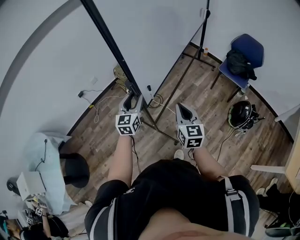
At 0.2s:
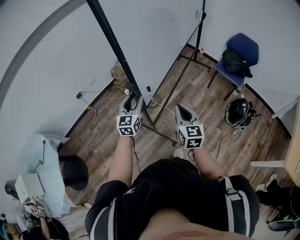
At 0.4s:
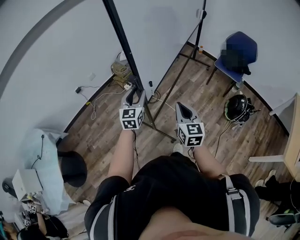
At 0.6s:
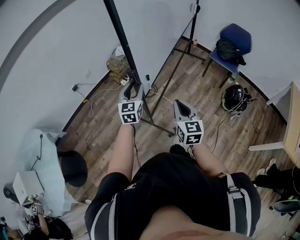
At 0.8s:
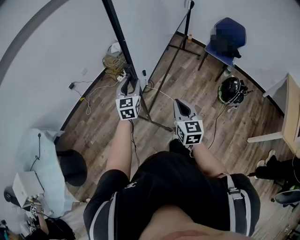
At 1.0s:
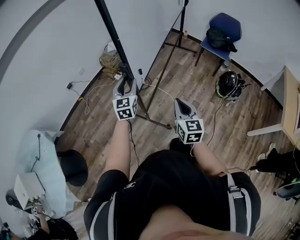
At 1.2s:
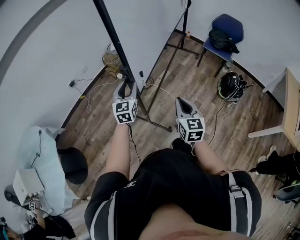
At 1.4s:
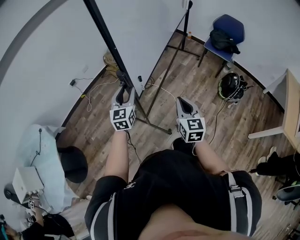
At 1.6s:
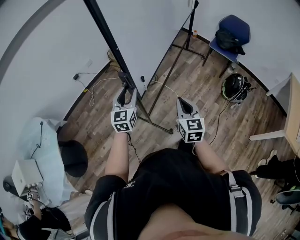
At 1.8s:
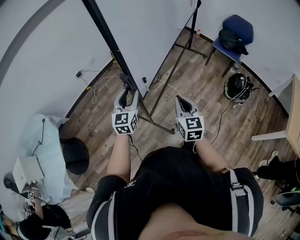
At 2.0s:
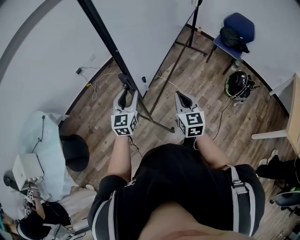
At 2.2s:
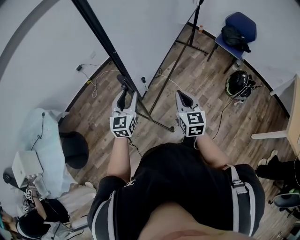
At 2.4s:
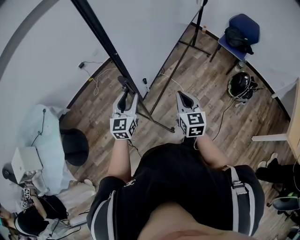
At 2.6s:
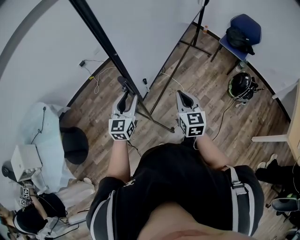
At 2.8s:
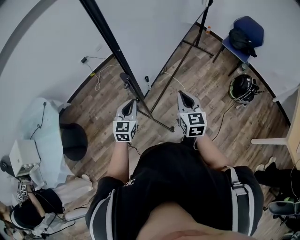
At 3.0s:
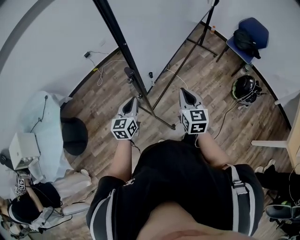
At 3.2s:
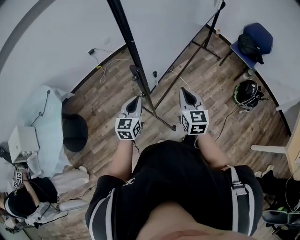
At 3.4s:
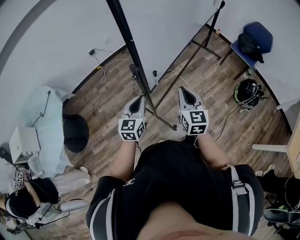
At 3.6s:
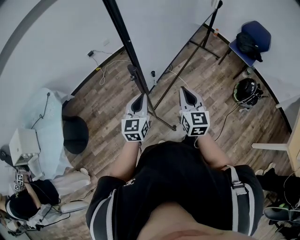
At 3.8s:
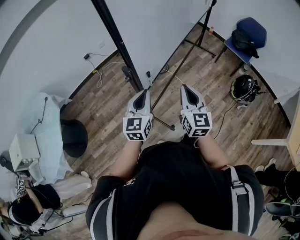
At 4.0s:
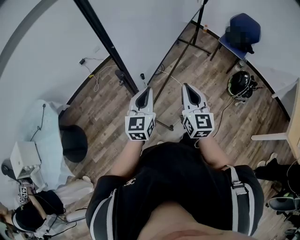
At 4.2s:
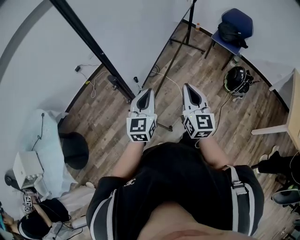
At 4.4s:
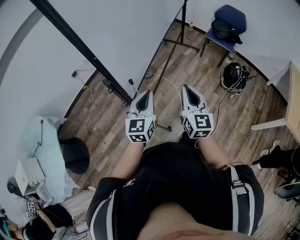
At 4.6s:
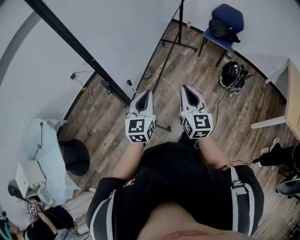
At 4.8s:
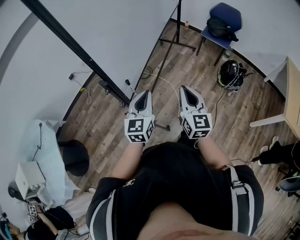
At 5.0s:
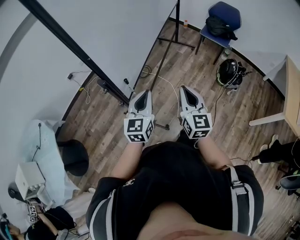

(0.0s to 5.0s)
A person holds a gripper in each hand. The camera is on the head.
0.0s - 1.6s: The grippers both shift backward by roughly 20 cm.
1.6s - 3.4s: The left gripper goes about 10 cm backward, and closes its fingers; the right gripper moves to the left, some 5 cm.
3.4s - 5.0s: The left gripper is displaced to the right and upward by about 15 cm. Meanwhile the right gripper heads to the right, covering approximately 10 cm.

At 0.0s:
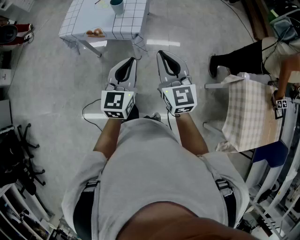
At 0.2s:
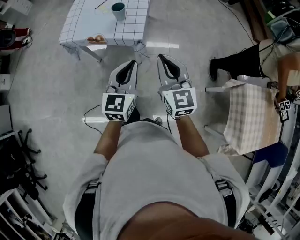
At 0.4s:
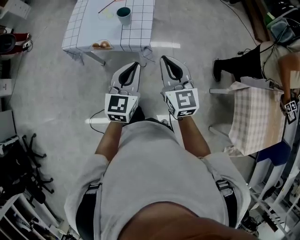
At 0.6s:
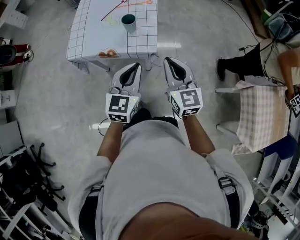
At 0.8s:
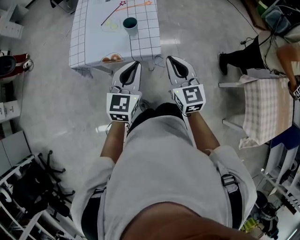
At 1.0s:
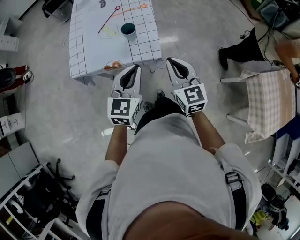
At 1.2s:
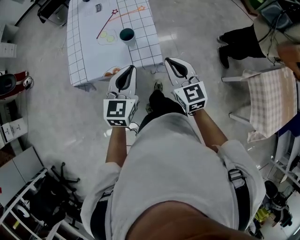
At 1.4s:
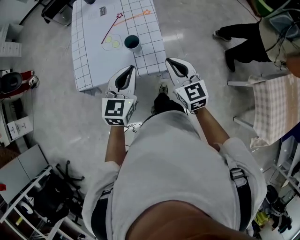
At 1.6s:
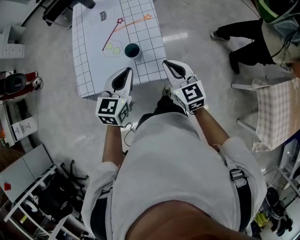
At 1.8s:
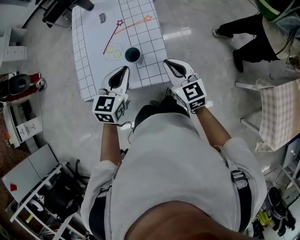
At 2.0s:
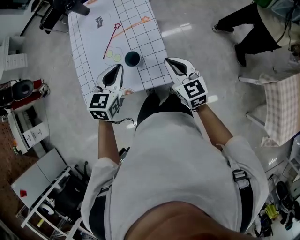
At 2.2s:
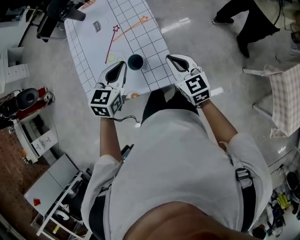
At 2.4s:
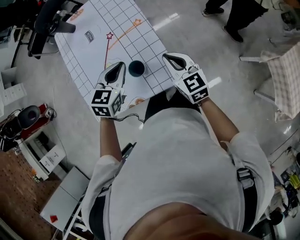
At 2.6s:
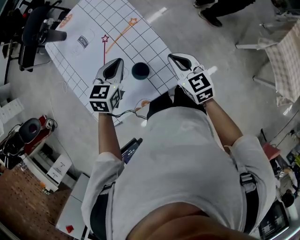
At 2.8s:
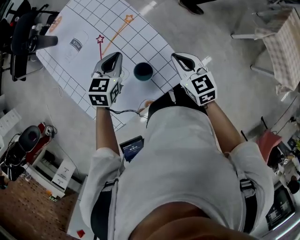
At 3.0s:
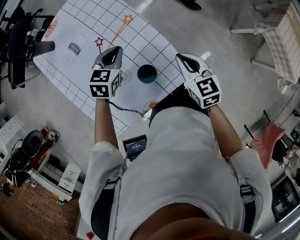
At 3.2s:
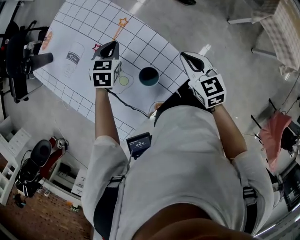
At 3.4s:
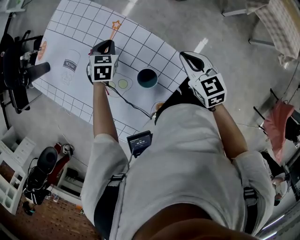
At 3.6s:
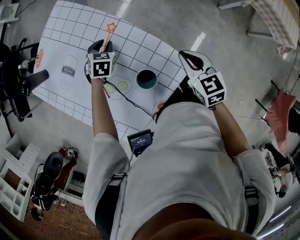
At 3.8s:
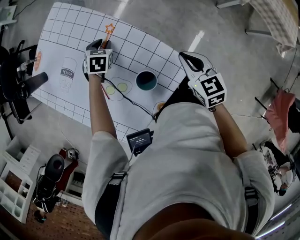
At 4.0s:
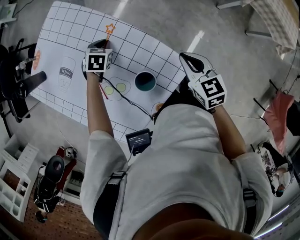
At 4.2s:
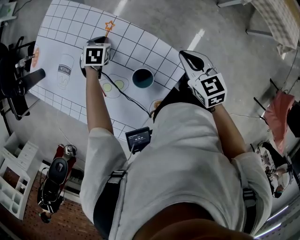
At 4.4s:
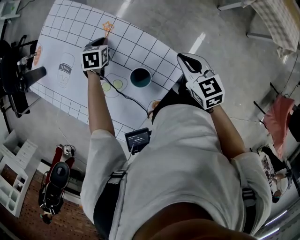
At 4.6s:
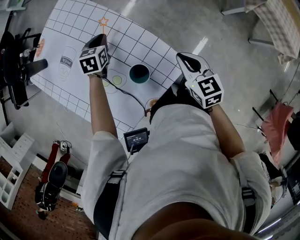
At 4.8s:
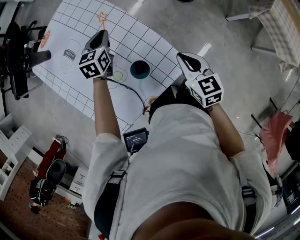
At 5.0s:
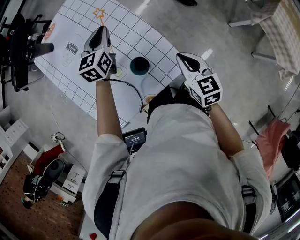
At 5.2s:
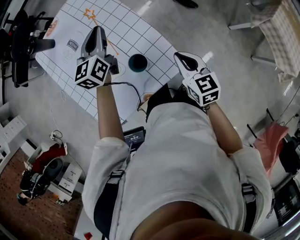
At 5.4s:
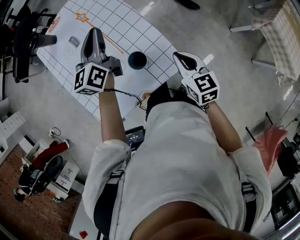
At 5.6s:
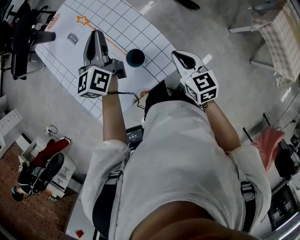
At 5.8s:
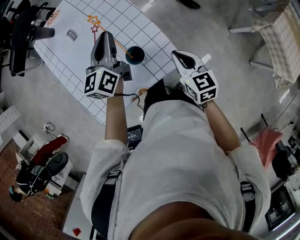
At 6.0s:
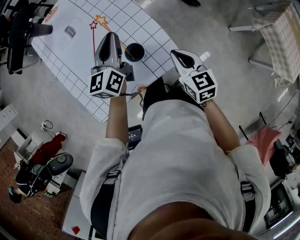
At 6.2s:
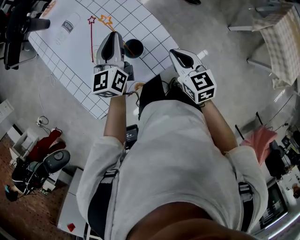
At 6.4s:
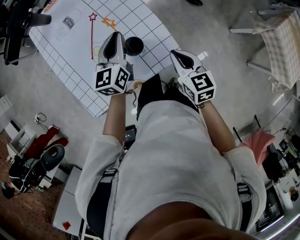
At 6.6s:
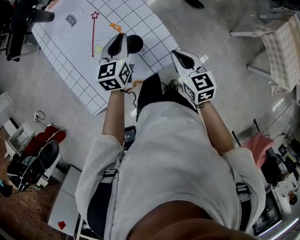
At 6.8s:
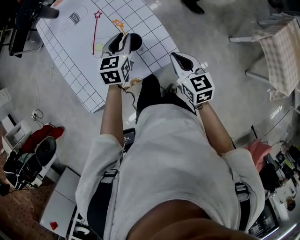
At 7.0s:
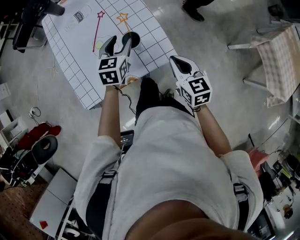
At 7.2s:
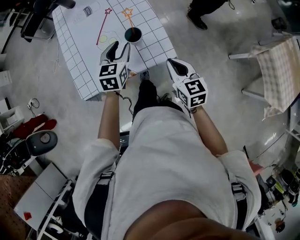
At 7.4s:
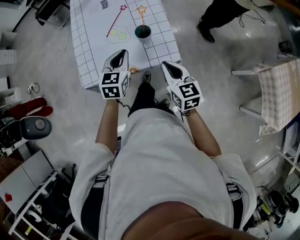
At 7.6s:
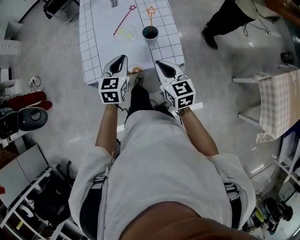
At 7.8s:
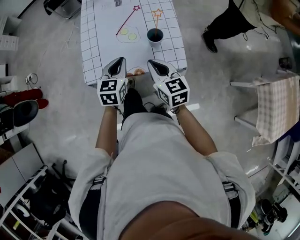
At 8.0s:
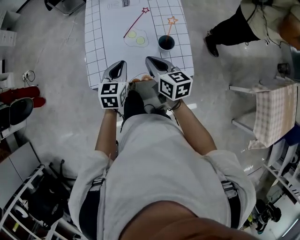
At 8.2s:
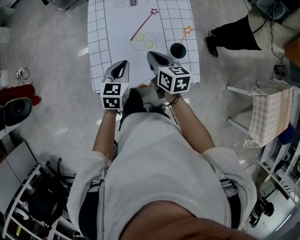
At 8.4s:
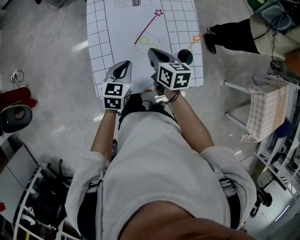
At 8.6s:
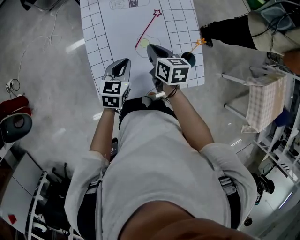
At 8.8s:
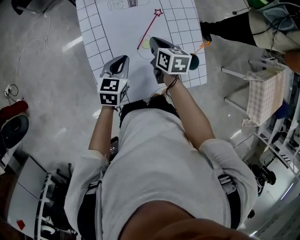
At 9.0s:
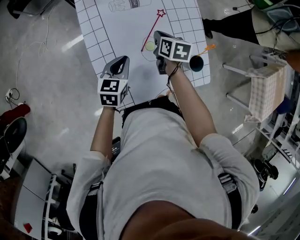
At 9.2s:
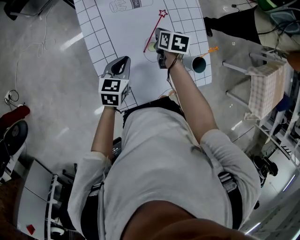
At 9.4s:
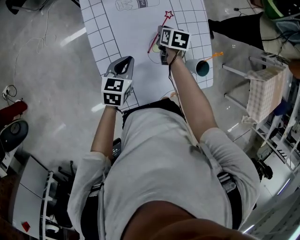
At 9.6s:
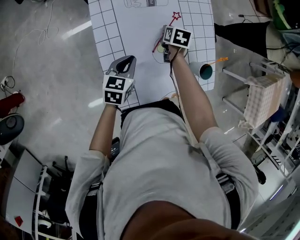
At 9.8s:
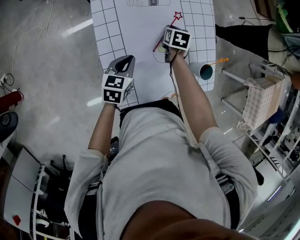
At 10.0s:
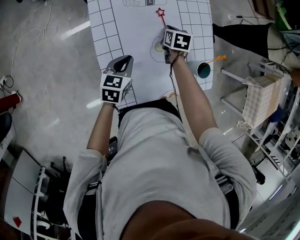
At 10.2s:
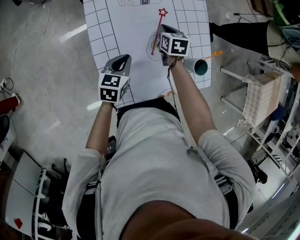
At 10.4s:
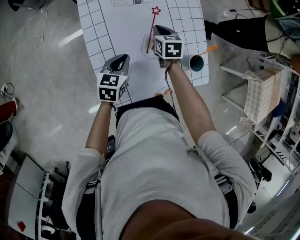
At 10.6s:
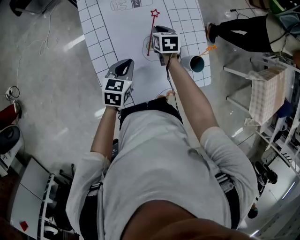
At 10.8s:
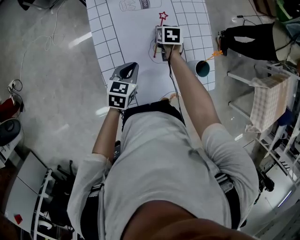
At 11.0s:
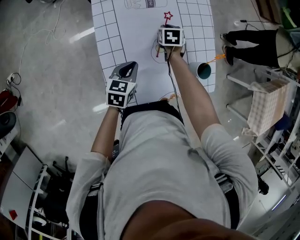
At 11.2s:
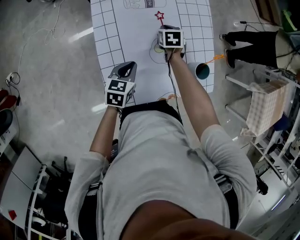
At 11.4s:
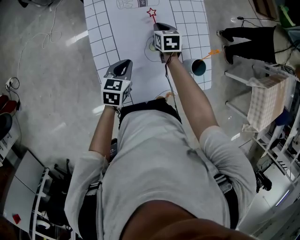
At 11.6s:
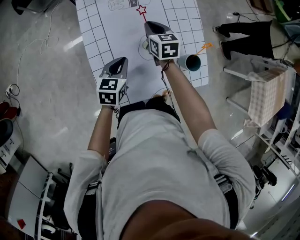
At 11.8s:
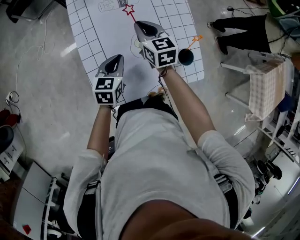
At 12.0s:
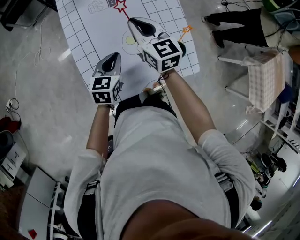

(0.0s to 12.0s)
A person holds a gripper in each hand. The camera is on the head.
0.0s - 1.6s: Both grippers move forward and to the left, approximately 35 cm. The left gripper swivels some 20 degrees.
1.6s - 3.0s: The right gripper shifts by about 15 cm, and turns by about 40 degrees. Meanwhile the left gripper ends up about 30 cm from where it was, and rotates roughly 40 degrees.
3.0s - 4.4s: The left gripper goes about 15 cm downward and forward, and opens, then closes once more. The right gripper shifts by approximately 5 cm.
4.4s - 6.0s: The left gripper moves upward and backward, roughly 25 cm, and angles its fingers upward, by some 50 degrees, while the right gripper moves about 5 cm.
6.0s - 7.6s: The right gripper travels backward, to the left and upward by about 15 cm, and swivels approximately 20 degrees; the left gripper shifts about 25 cm backward, turns by about 30 degrees, and opens, then closes again.
7.6s - 9.0s: The right gripper is displaced forward and to the left by approximately 40 cm, and turns by roughly 40 degrees; the left gripper heads forward, to the left and downward, covering approximately 30 cm, and rotates roughly 20 degrees.
10.4s - 12.0s: The left gripper moves to the right, about 5 cm. Meanwhile the right gripper travels upward by roughly 15 cm, tips its fingers upward by roughly 30 degrees, and opens and closes again.

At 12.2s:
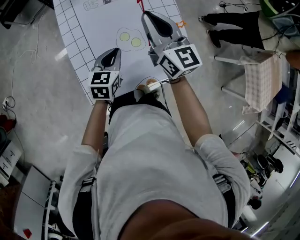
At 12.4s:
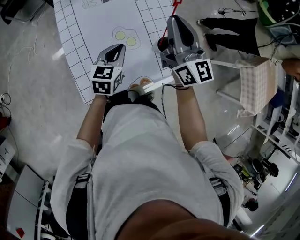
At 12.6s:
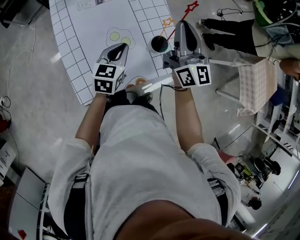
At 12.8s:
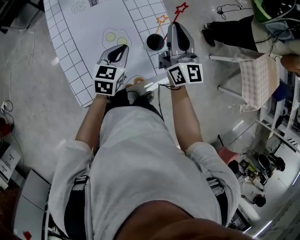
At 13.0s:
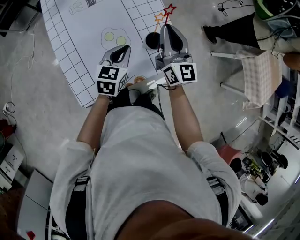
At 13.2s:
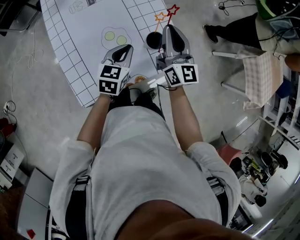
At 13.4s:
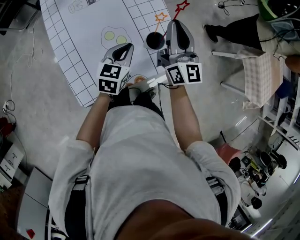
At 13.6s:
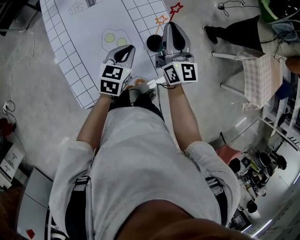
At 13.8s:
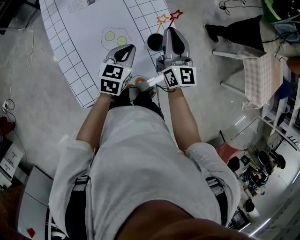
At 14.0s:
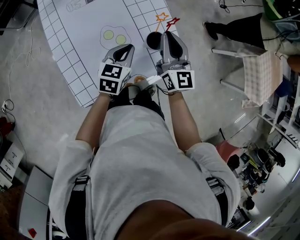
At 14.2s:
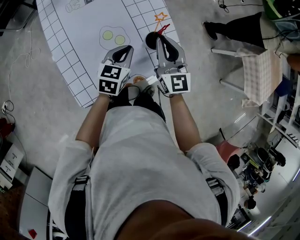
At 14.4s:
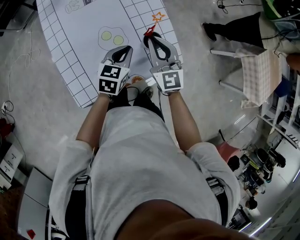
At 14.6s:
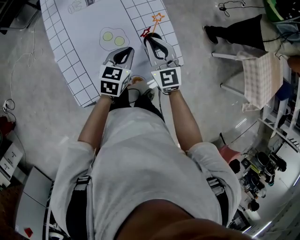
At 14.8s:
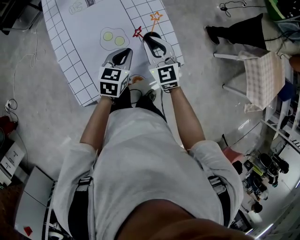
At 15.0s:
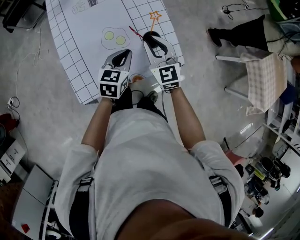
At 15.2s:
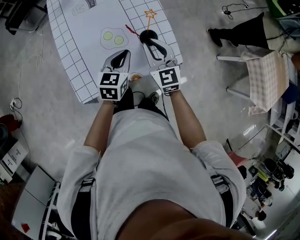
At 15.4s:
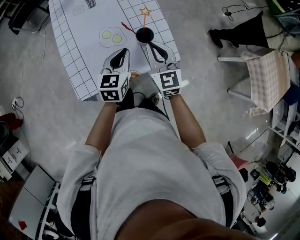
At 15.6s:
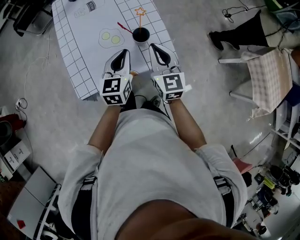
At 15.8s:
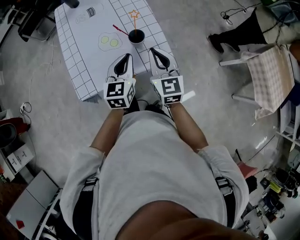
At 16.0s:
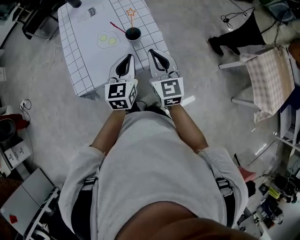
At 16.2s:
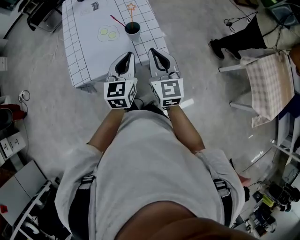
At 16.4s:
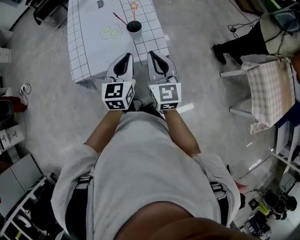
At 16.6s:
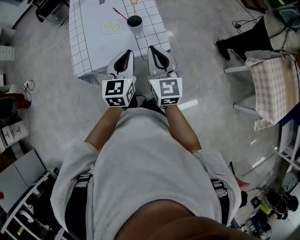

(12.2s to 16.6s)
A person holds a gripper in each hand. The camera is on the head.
12.2s - 13.6s: The grippers both shift to the right by roughly 15 cm. The right gripper turns by about 20 degrees.
13.6s - 15.2s: The right gripper heads backward and downward, covering approximately 10 cm, and changes its angle by roughly 30 degrees.
15.2s - 16.6s: The two grippers go roughly 20 cm backward, to the right and upward. The left gripper rotates approximately 20 degrees.

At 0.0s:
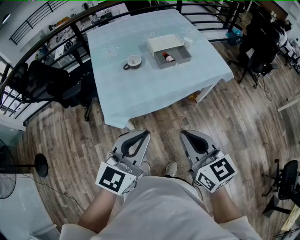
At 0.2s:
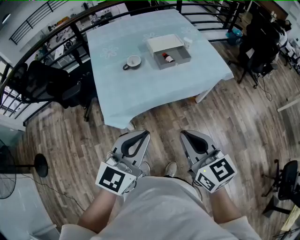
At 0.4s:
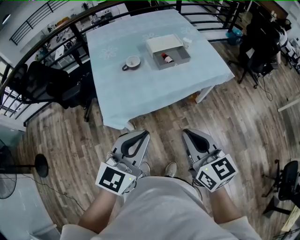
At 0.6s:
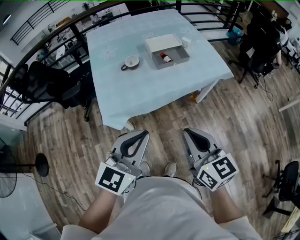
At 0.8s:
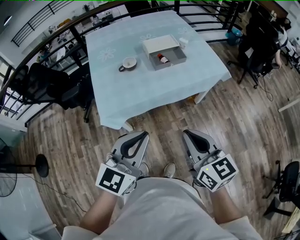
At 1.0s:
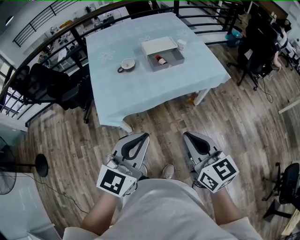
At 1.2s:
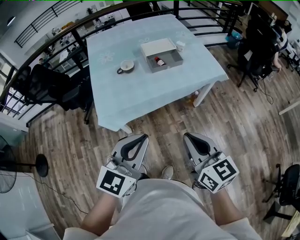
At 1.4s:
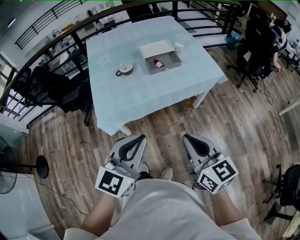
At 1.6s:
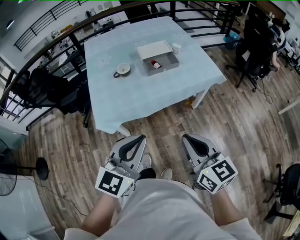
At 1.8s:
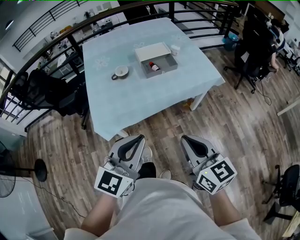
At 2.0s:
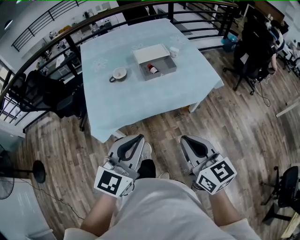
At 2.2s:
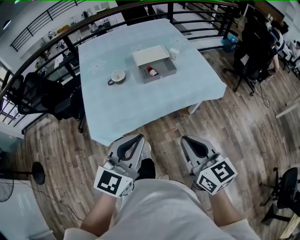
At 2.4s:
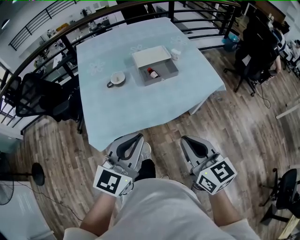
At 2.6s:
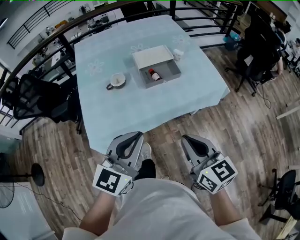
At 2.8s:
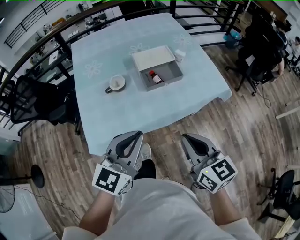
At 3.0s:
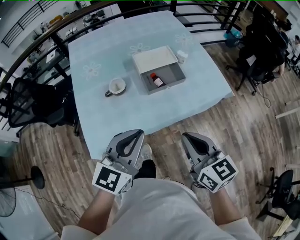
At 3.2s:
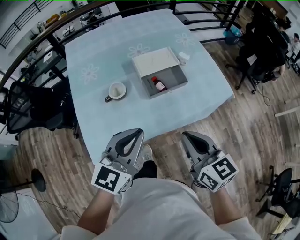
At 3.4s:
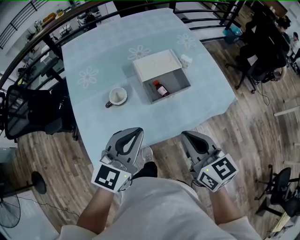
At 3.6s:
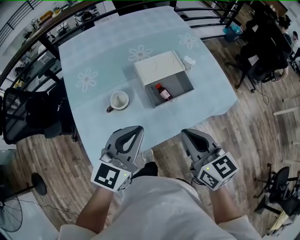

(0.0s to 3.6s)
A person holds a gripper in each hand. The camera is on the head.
0.0s - 1.8s: Both grippers move to the right, roughly 10 cm.
1.8s - 3.6s: Both grippers travel together forward, about 35 cm.
